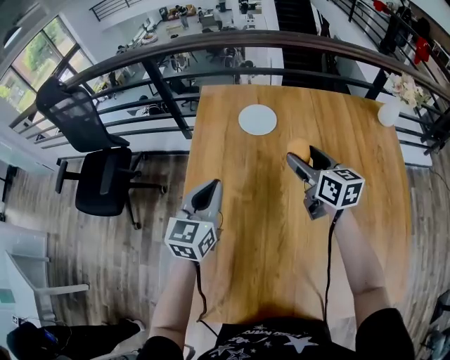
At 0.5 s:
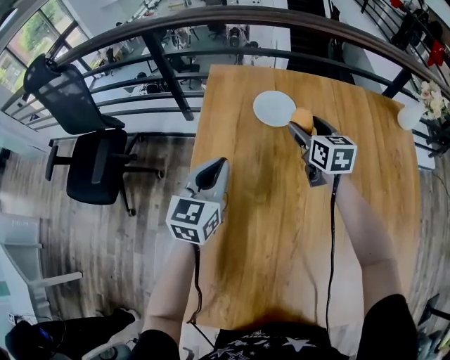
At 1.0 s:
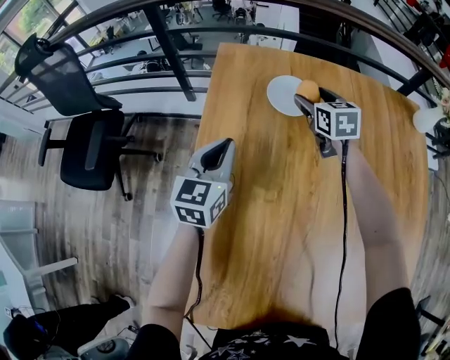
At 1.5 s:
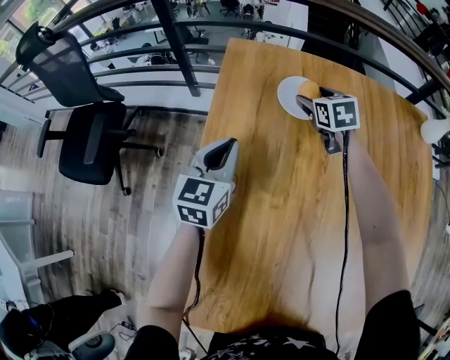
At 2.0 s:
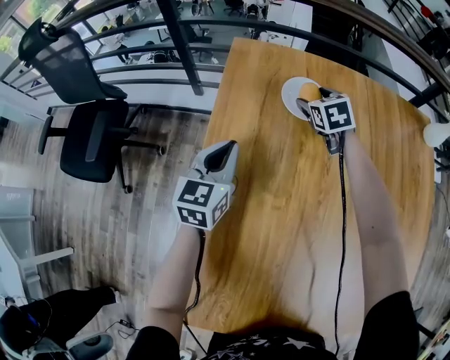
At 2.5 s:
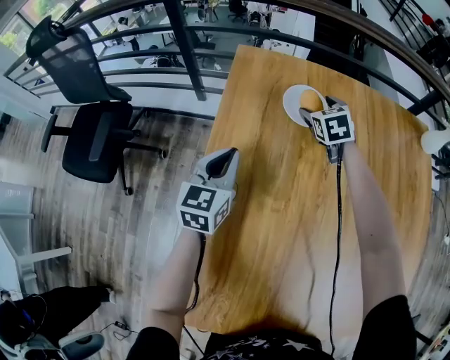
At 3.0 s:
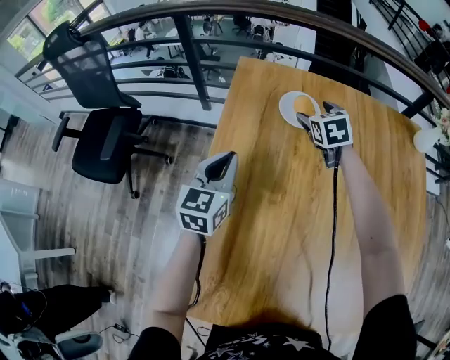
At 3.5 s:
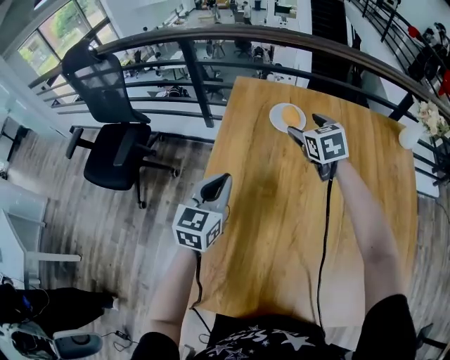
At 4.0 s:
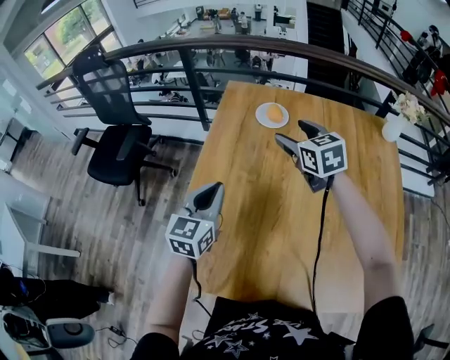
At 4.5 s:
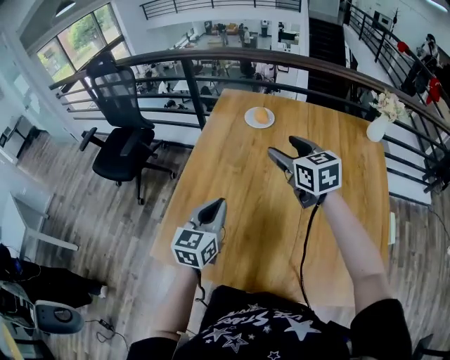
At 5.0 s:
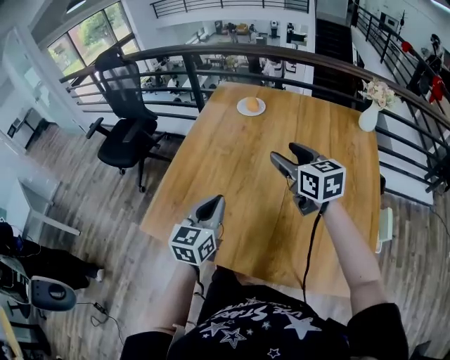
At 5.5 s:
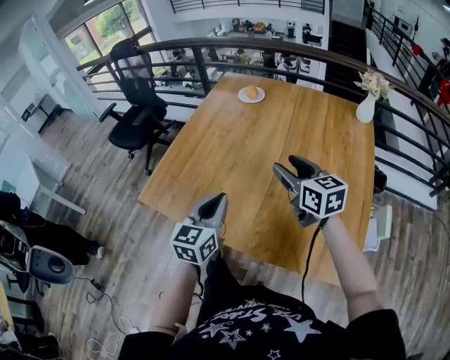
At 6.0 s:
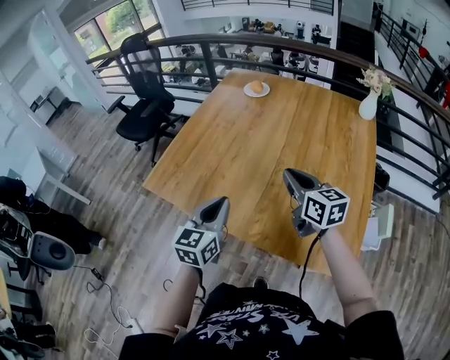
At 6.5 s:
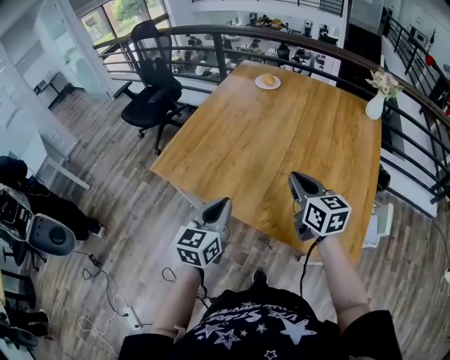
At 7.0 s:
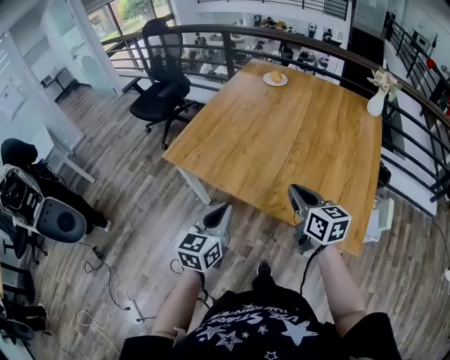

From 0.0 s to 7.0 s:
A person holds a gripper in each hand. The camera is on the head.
From 0.0 s to 2.0 s: The left gripper goes about 20 cm forward, downward and to the left, while the right gripper heads forward, downward and to the left, covering about 30 cm, and changes its angle by approximately 40 degrees.
From 2.0 s to 3.5 s: The two grippers go approximately 20 cm backward and upward.
From 3.5 s to 5.0 s: The left gripper goes roughly 35 cm backward and to the right; the right gripper heads backward, covering about 35 cm, and turns by some 30 degrees.
From 5.0 s to 7.0 s: Both grippers travel together backward, roughly 35 cm. The right gripper closes up.

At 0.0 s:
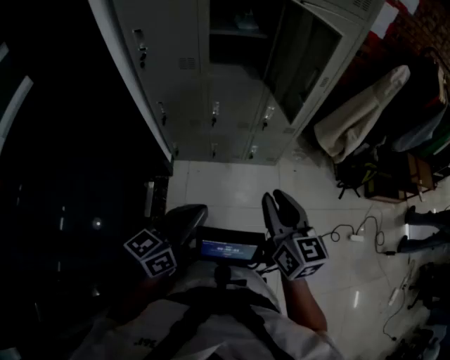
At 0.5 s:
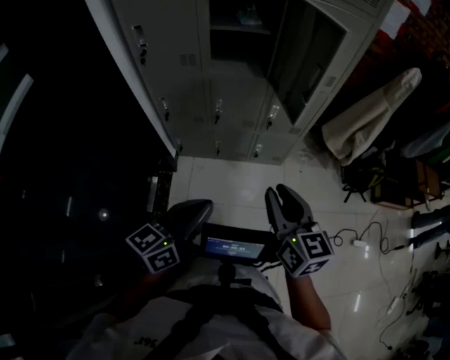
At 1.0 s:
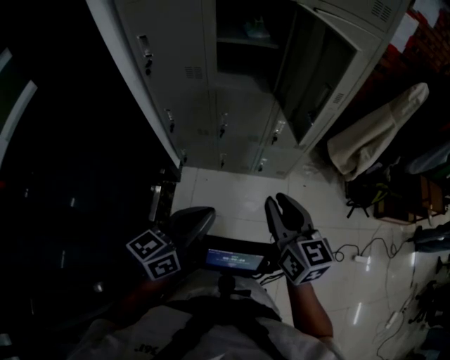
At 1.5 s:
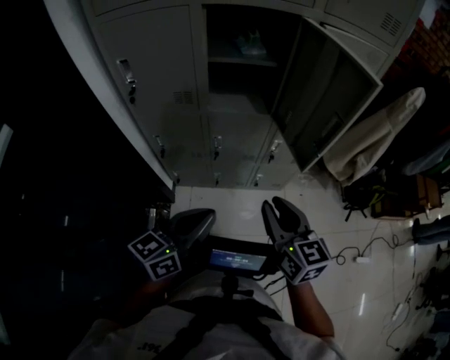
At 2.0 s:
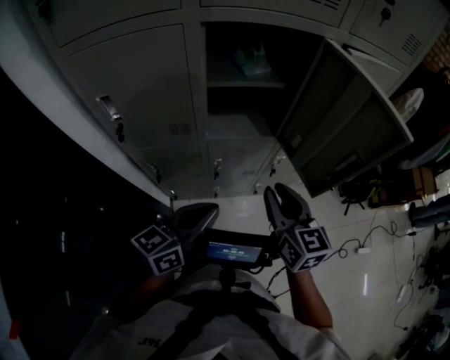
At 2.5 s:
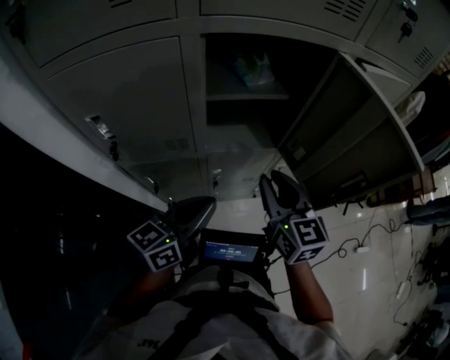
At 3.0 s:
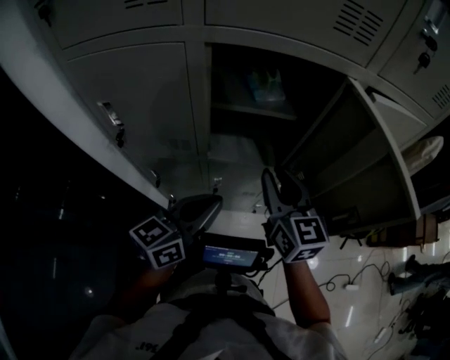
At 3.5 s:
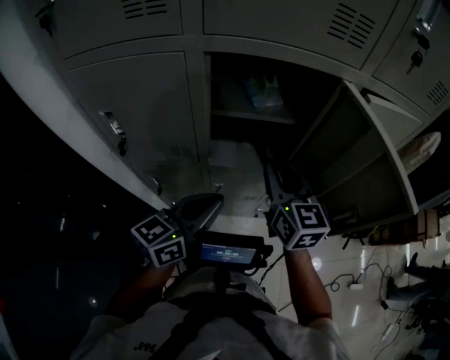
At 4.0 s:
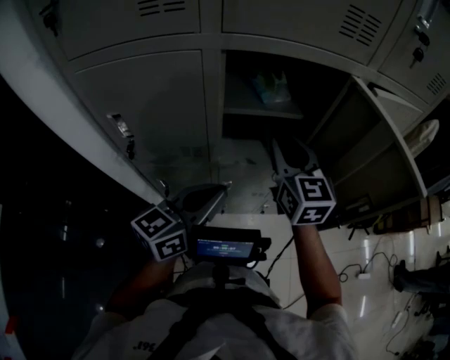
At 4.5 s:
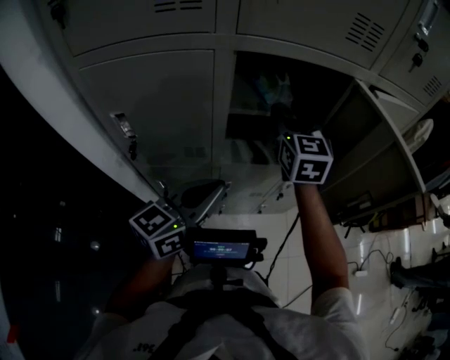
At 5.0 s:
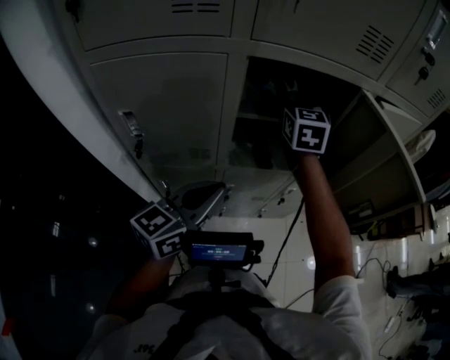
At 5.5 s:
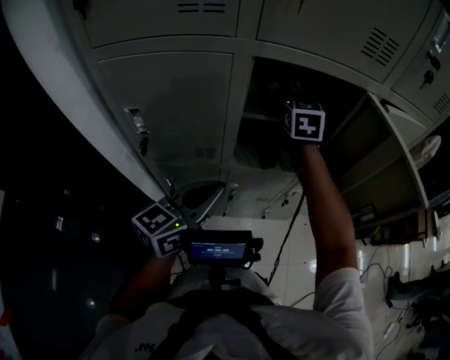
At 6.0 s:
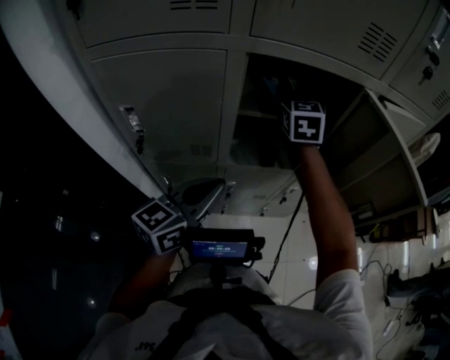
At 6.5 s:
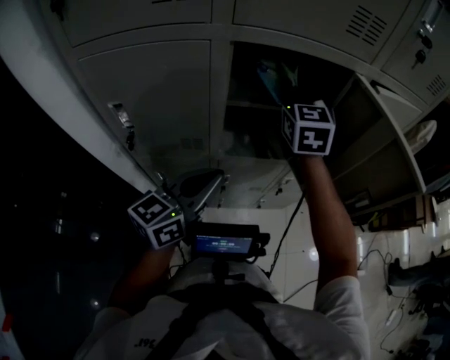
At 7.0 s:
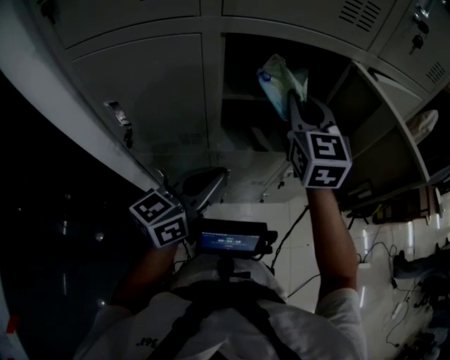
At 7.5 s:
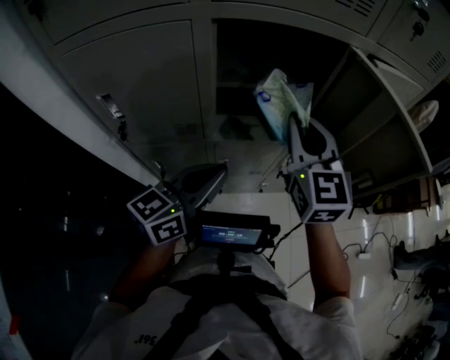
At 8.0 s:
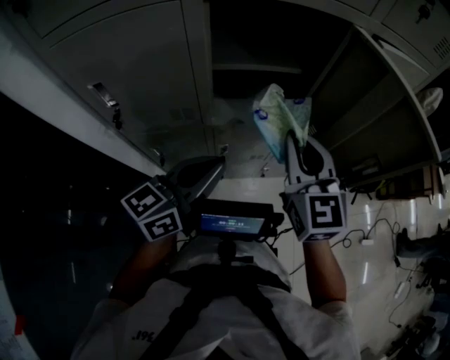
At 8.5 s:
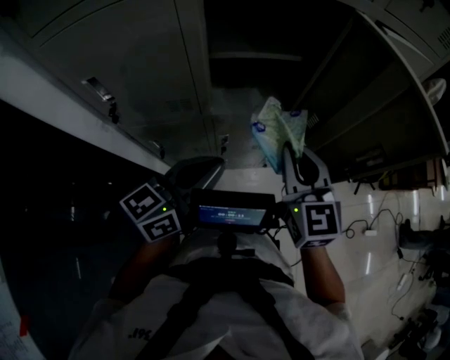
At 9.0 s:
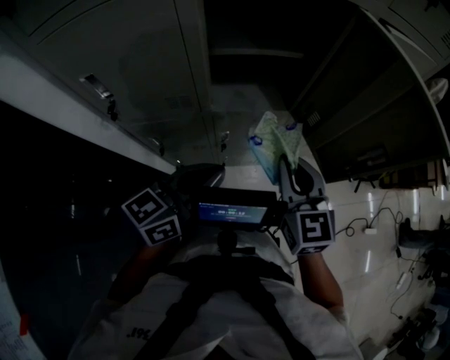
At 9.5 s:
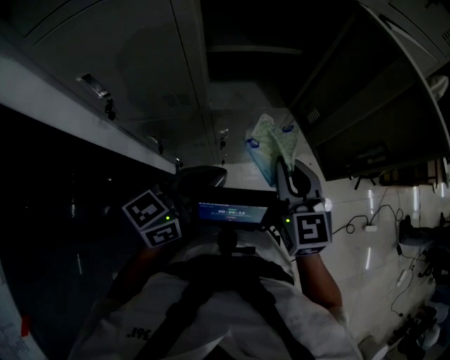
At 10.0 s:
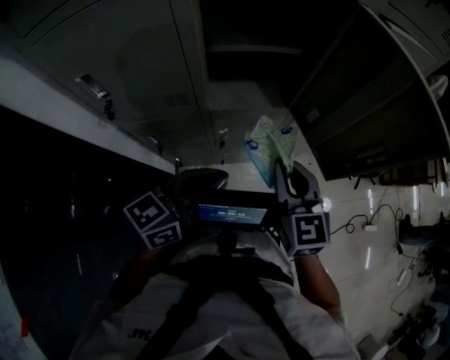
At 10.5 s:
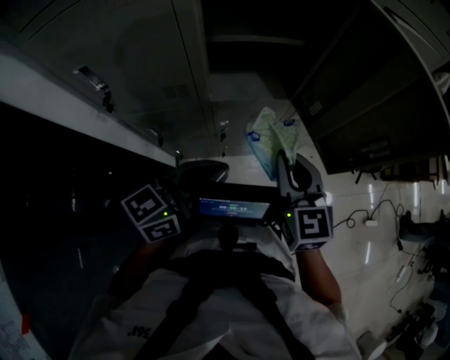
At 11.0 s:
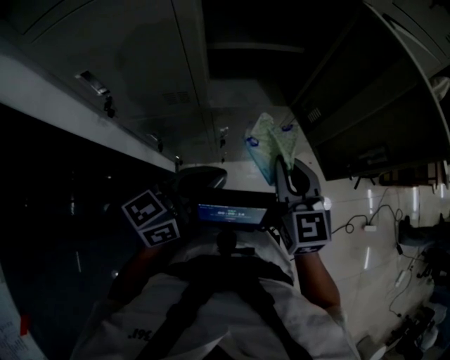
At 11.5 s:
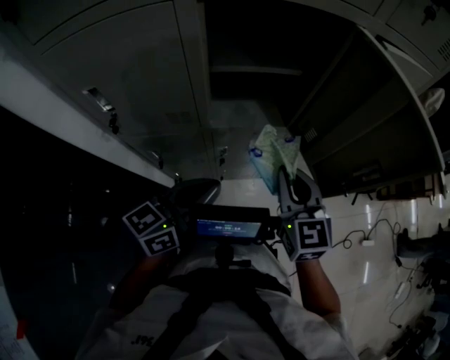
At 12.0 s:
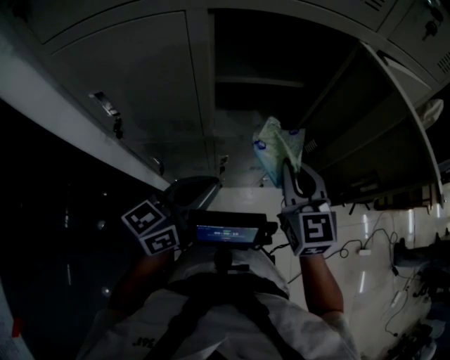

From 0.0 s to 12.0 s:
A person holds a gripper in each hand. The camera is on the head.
From 0.0 s to 2.0 s: The left gripper travels forward by about 30 cm, while the right gripper is displaced forward and to the left by some 30 cm.
From 2.0 s to 4.0 s: The right gripper goes about 20 cm forward and upward, while the left gripper shifts some 10 cm forward and upward.
From 4.0 s to 6.0 s: The right gripper heads forward, covering roughly 15 cm, and opens, then closes again.
From 6.0 s to 8.0 s: The left gripper travels to the right by approximately 5 cm. The right gripper is displaced backward and to the right by about 25 cm.
From 8.0 s to 10.0 s: The right gripper is displaced downward and backward by approximately 10 cm. Meanwhile the left gripper changes place by about 5 cm.
From 10.0 s to 12.0 s: The right gripper goes about 5 cm forward.

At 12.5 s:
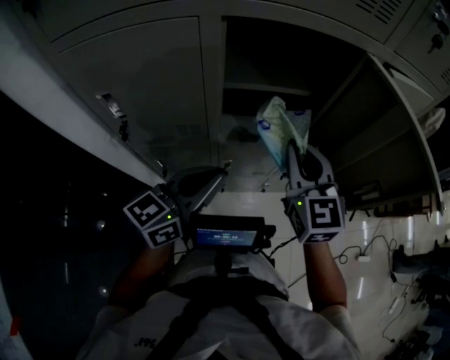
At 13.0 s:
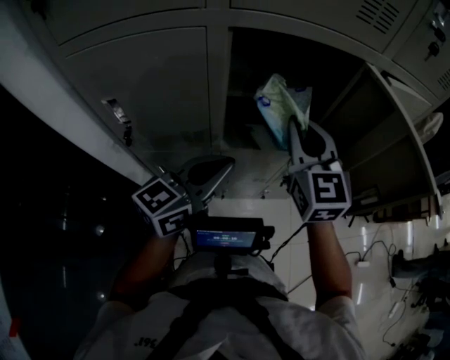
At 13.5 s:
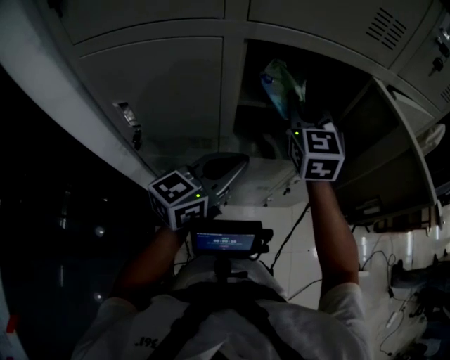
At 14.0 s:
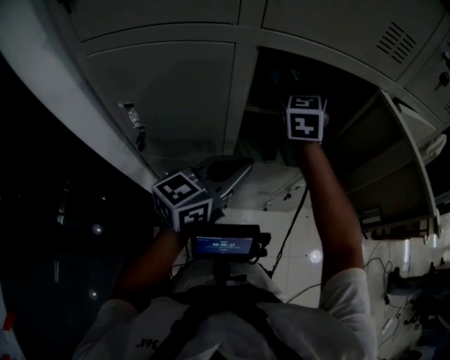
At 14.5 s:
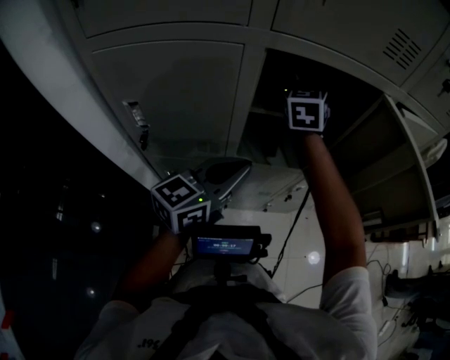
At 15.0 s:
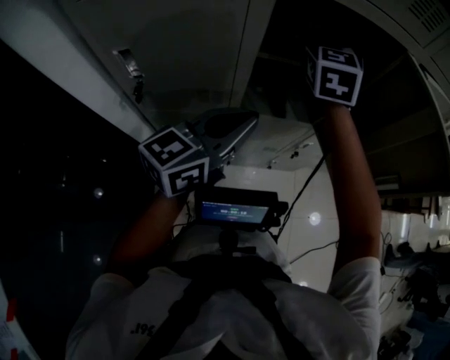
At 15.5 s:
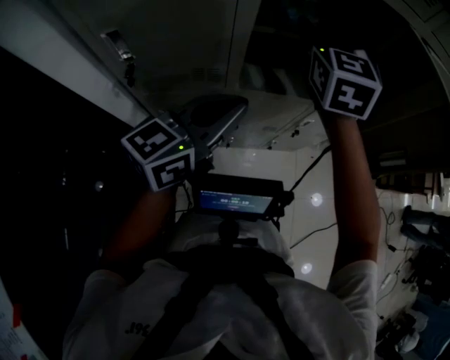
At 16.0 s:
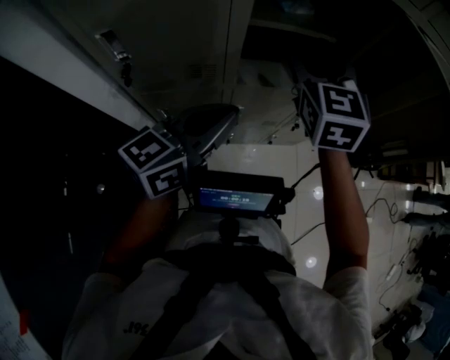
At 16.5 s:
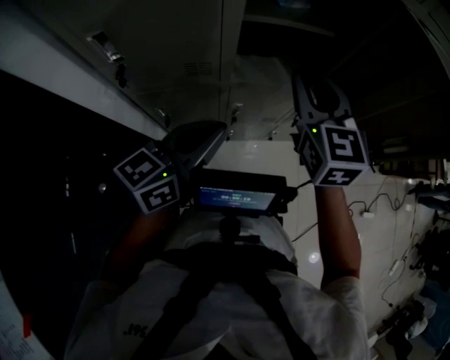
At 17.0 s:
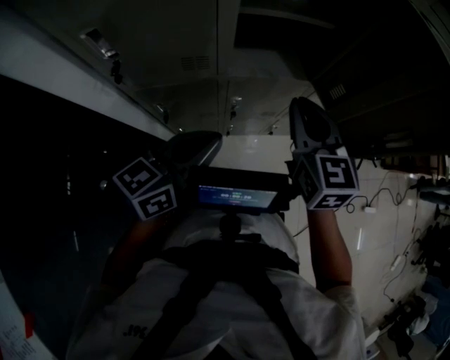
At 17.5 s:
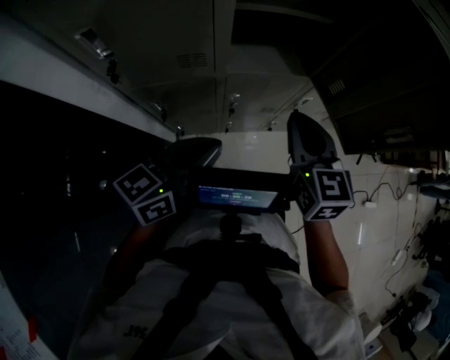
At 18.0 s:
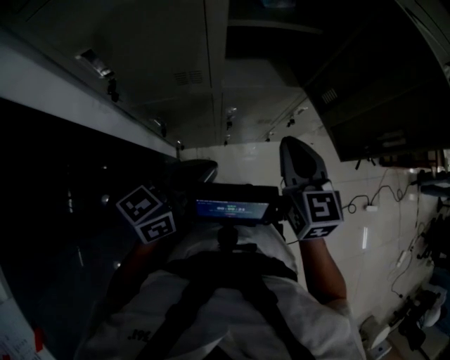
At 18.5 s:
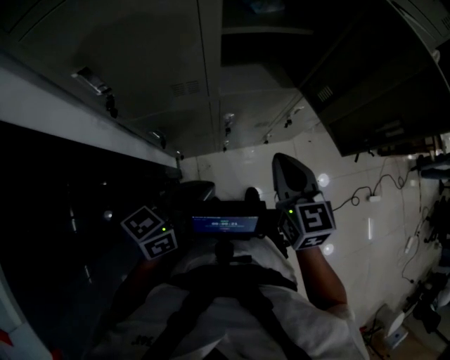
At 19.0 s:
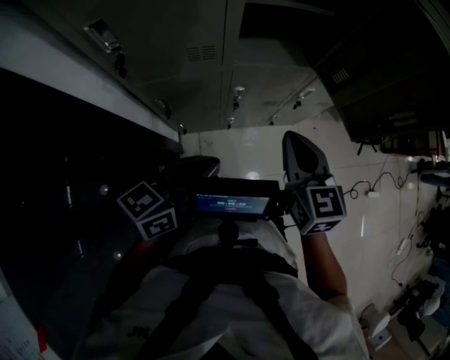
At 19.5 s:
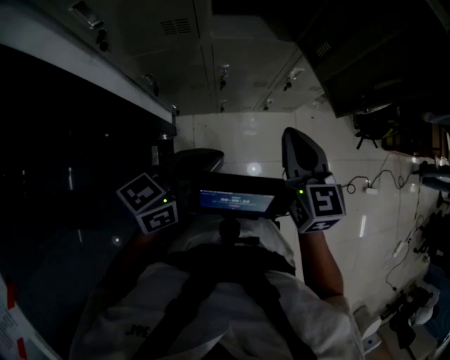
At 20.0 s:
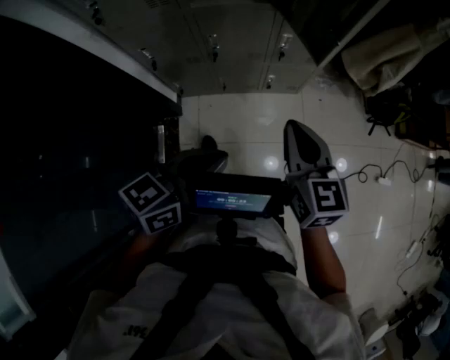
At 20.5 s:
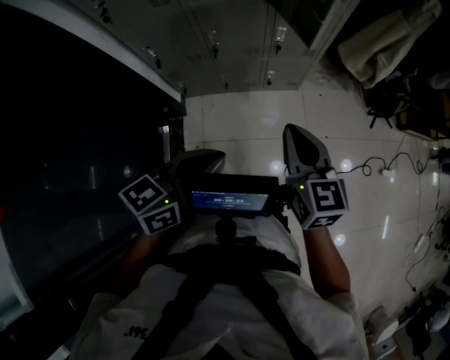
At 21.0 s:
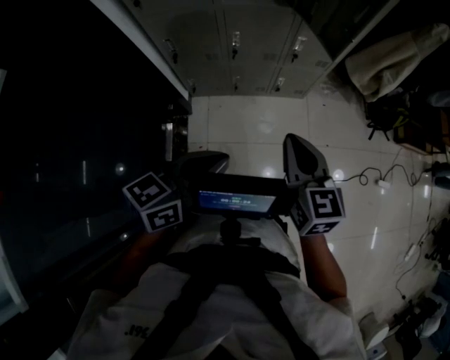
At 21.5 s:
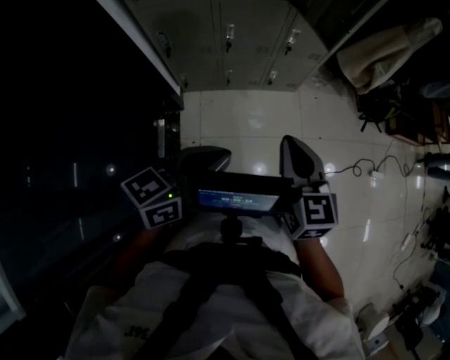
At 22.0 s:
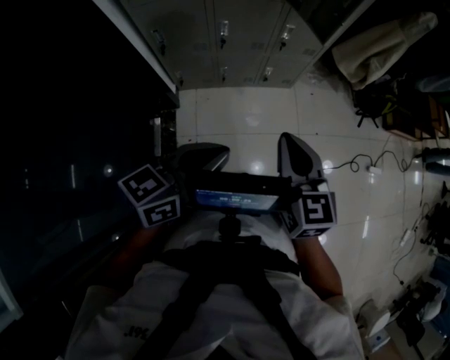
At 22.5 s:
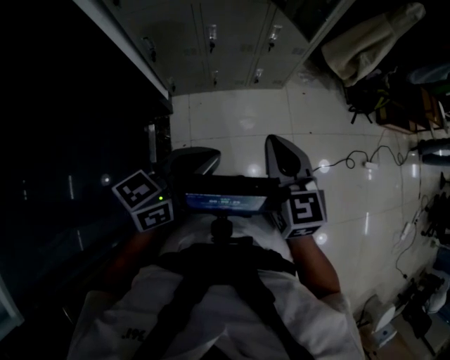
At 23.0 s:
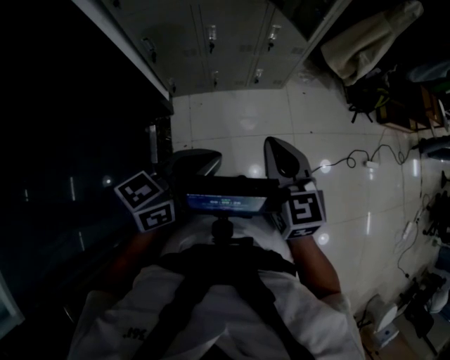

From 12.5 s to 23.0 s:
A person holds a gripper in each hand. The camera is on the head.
From 12.5 s to 14.5 s: The right gripper is displaced forward and to the left by about 25 cm, and opens up; the left gripper goes approximately 5 cm forward.
From 14.5 s to 16.5 s: The left gripper is displaced backward and downward by approximately 10 cm, while the right gripper goes some 20 cm backward, and closes its fingers.
From 16.5 s to 19.0 s: The left gripper is displaced backward and downward by approximately 10 cm. Meanwhile the right gripper goes about 15 cm backward and downward.
From 19.0 s to 21.0 s: The two grippers go about 30 cm backward and to the right.
From 21.0 s to 23.0 s: The right gripper ends up some 5 cm from where it was.
